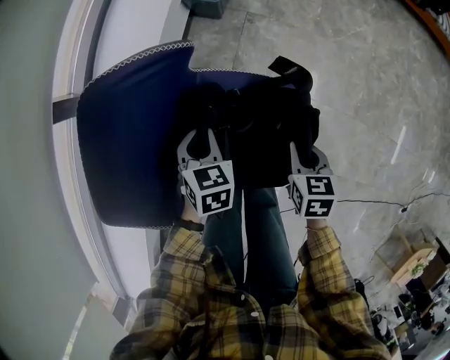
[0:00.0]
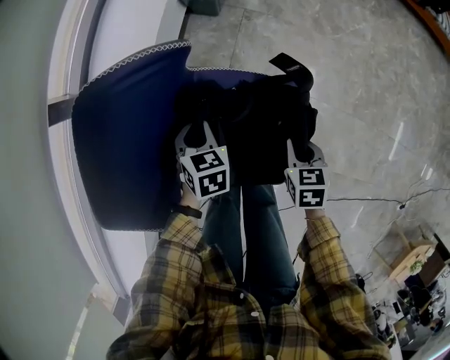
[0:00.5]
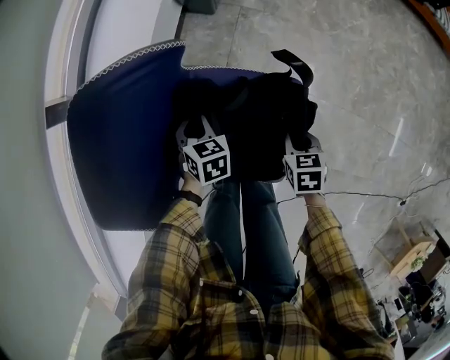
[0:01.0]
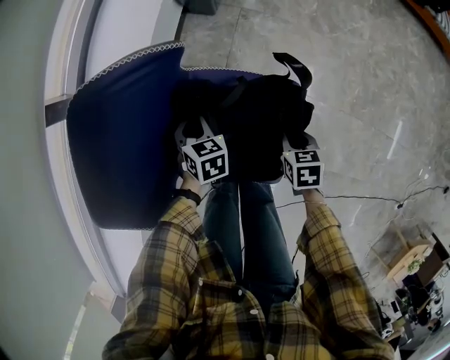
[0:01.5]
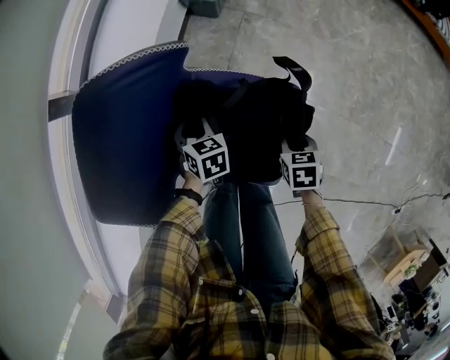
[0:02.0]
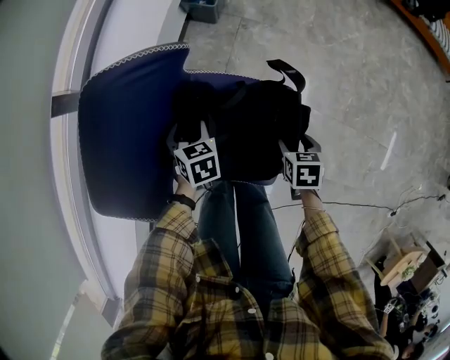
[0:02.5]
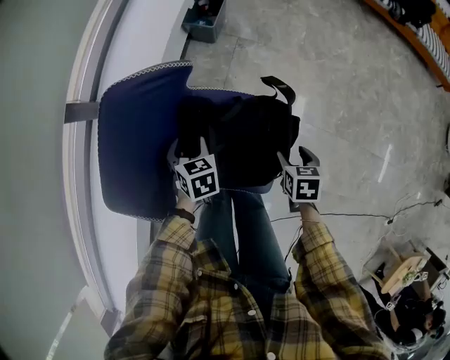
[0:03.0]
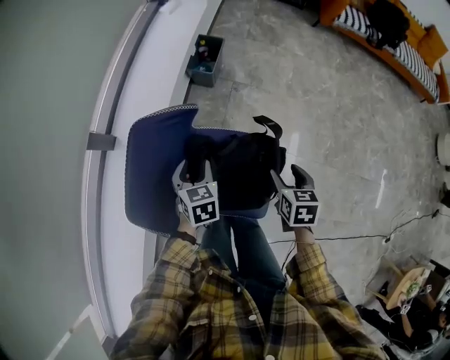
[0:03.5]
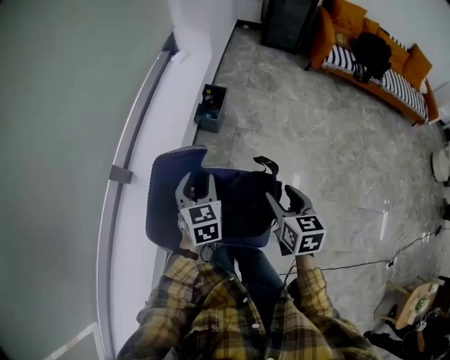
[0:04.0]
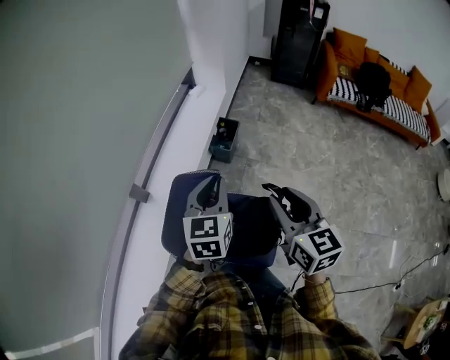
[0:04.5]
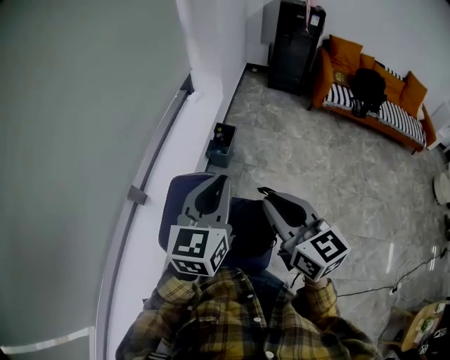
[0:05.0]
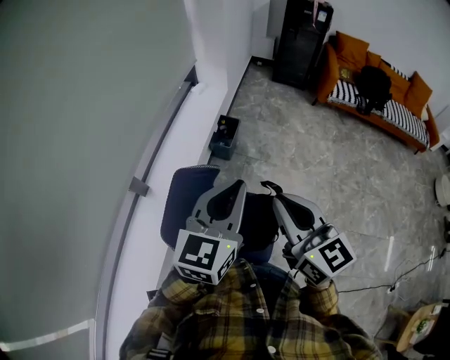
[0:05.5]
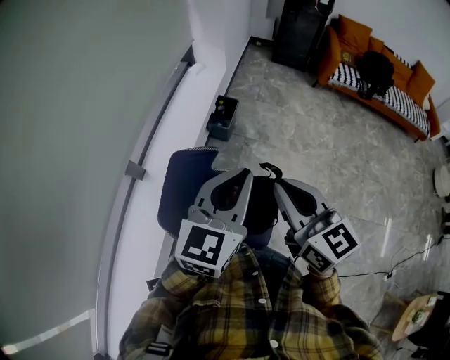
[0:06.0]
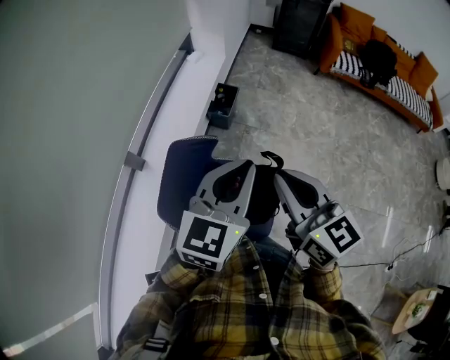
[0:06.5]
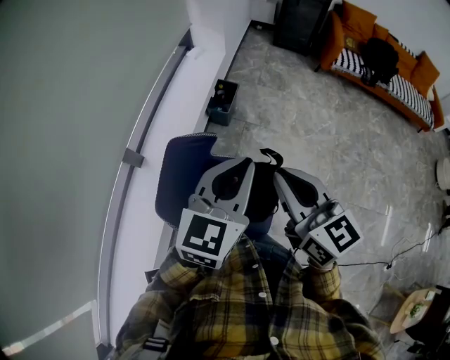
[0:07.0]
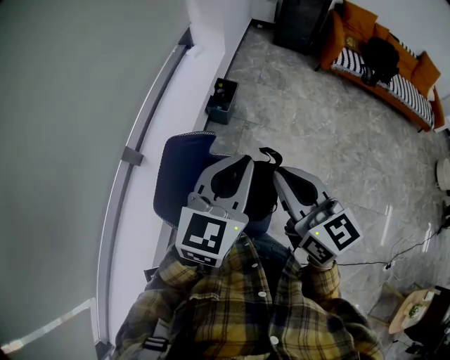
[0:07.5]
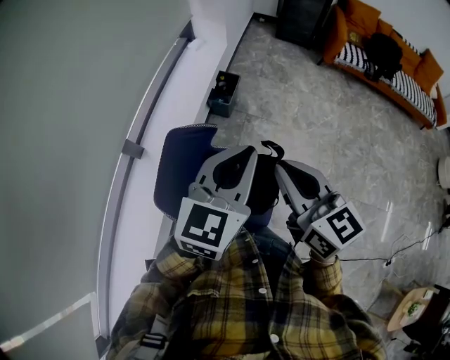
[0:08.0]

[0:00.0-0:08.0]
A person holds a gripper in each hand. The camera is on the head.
0:00.0 to 0:02.0: Both grippers move downward, some 10 cm.
0:02.0 to 0:04.0: The two grippers go approximately 35 cm upward. The left gripper swivels some 30 degrees, and opens its fingers. Meanwhile the right gripper angles its fingers upward, by roughly 30 degrees, and opens up.
0:04.0 to 0:06.0: Both grippers travel together upward, roughly 25 cm. The left gripper rotates some 40 degrees, and closes up. Meanwhile the right gripper tips its fingers upward by about 30 degrees, and closes its fingers.
0:06.0 to 0:08.0: The grippers stay close to where they were, moving slightly.

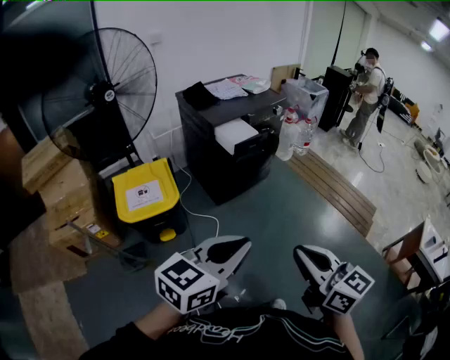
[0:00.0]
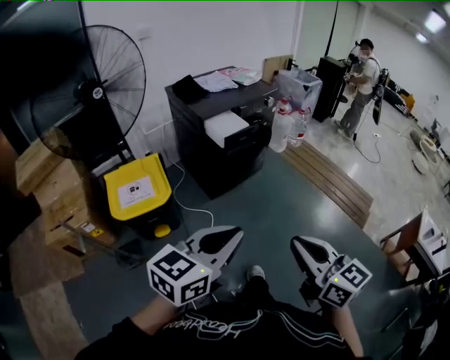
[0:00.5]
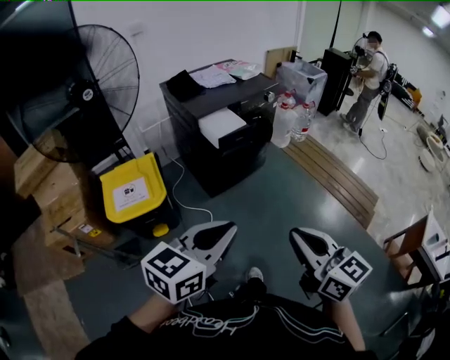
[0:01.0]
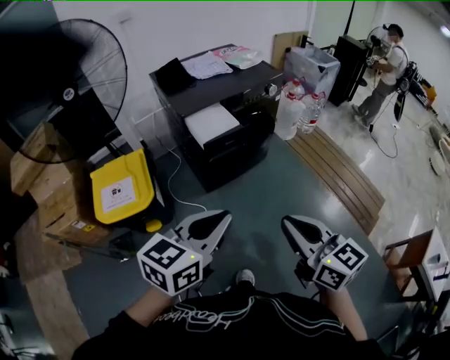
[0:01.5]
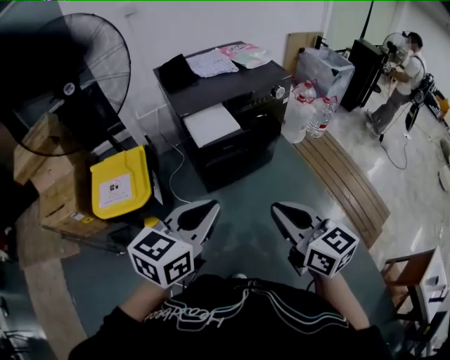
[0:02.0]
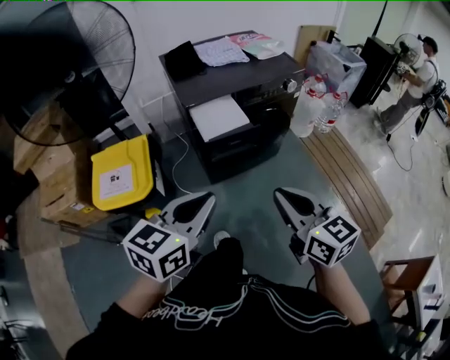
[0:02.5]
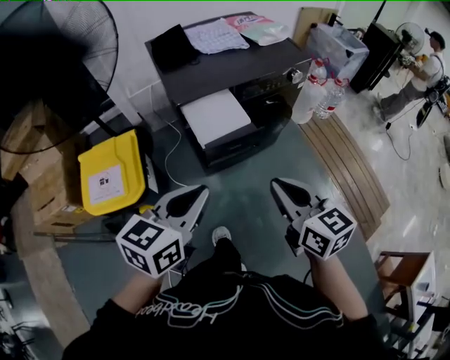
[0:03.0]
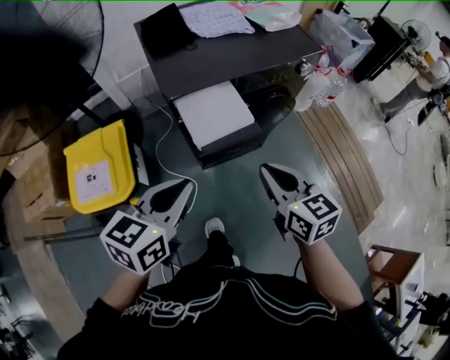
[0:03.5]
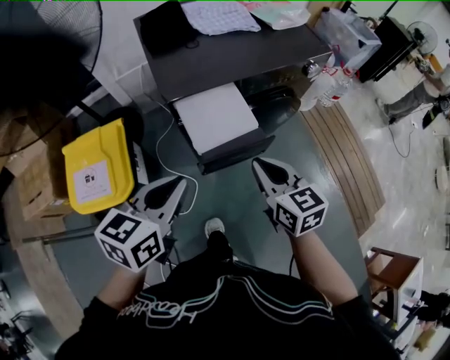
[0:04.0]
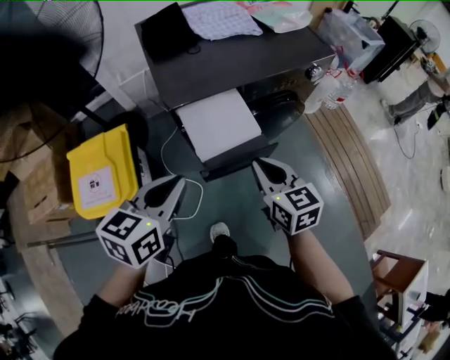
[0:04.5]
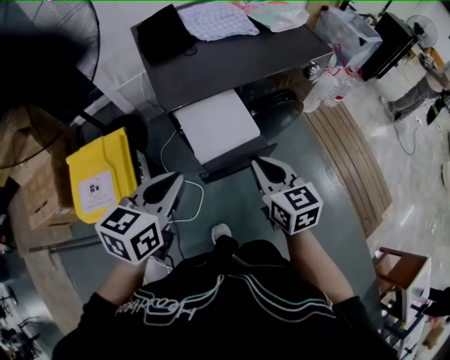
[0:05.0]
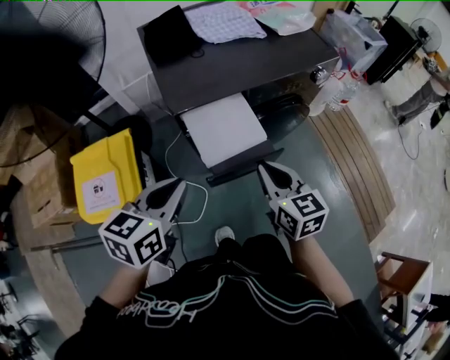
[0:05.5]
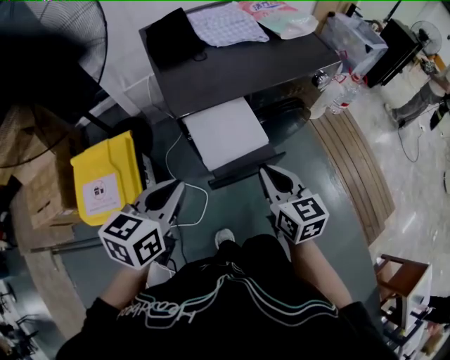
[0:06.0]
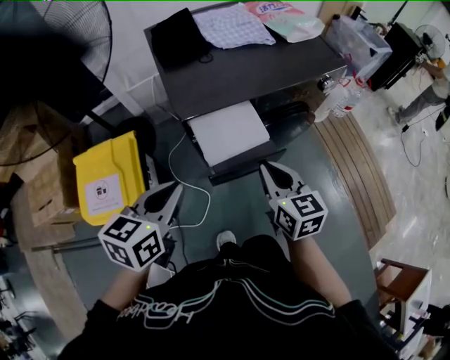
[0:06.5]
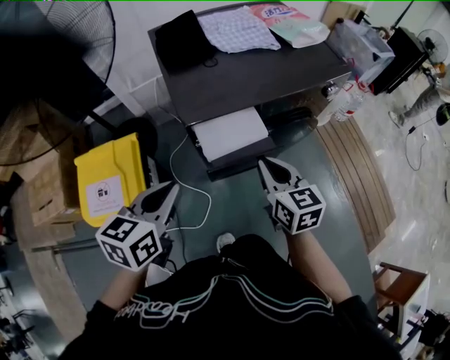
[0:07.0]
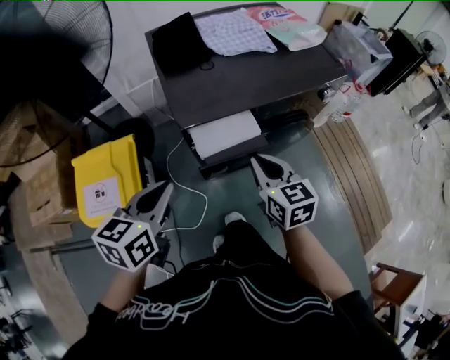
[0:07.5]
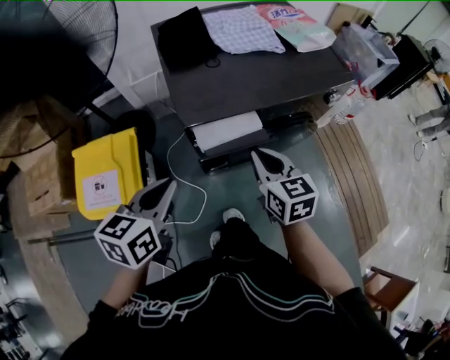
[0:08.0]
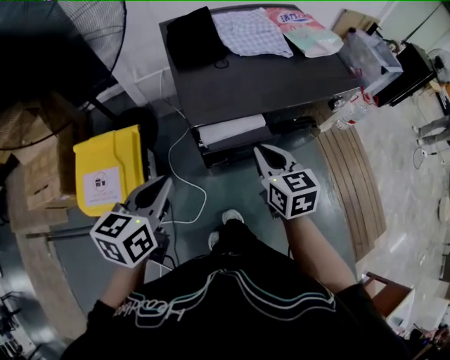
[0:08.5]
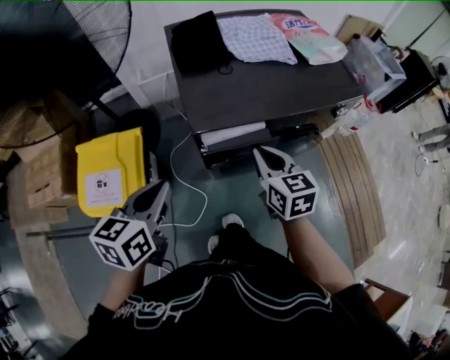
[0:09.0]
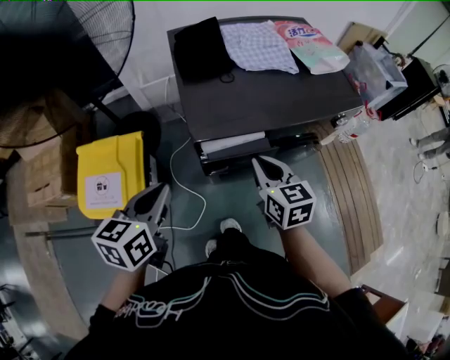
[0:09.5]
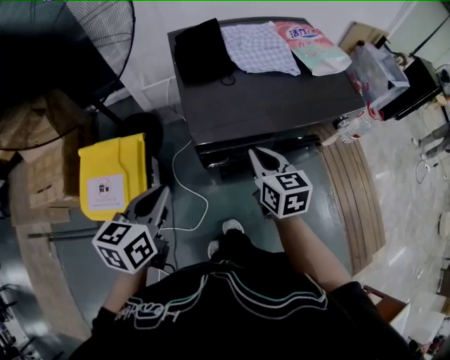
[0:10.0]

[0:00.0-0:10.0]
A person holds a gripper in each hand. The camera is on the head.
0:00.0 to 0:02.0: The grippers both shift forward by about 35 cm. The left gripper turns by approximately 20 degrees.
0:02.0 to 0:04.0: The grippers both shift forward and downward by some 30 cm.
0:04.0 to 0:06.0: The left gripper moves about 5 cm.
0:06.0 to 0:08.0: The right gripper is displaced forward by approximately 10 cm.
0:08.0 to 0:10.0: The right gripper travels forward by some 5 cm.

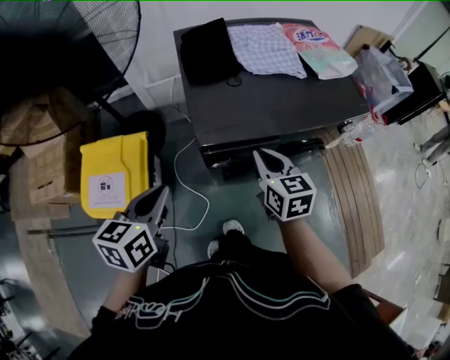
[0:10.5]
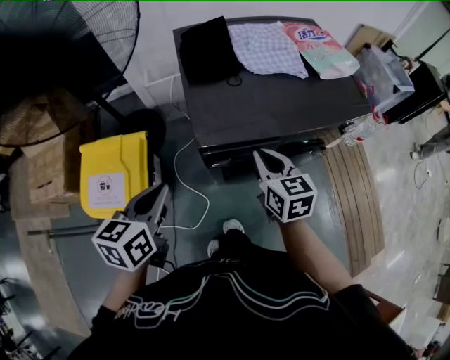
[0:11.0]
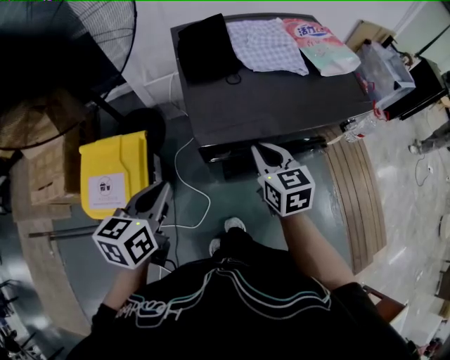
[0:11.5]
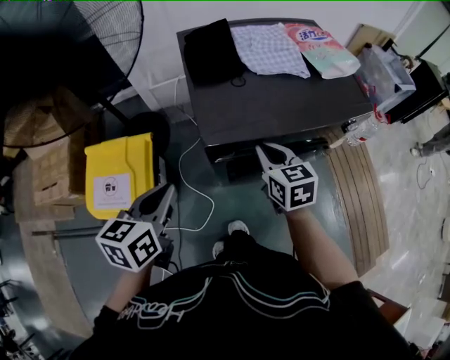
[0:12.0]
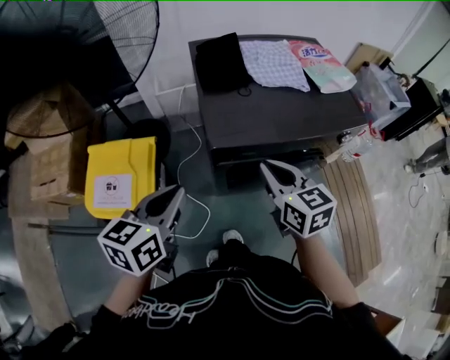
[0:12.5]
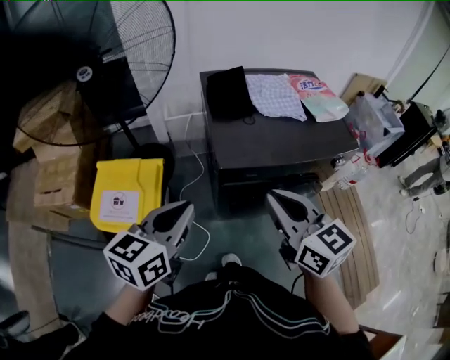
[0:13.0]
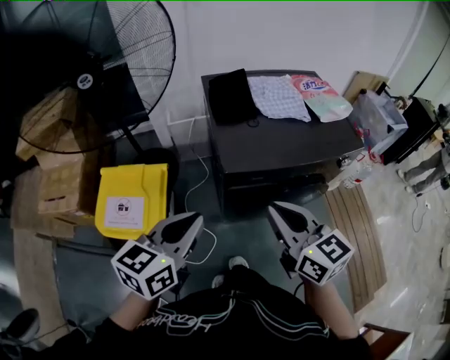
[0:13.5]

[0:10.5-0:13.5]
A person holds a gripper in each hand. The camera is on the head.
0:10.5 to 0:12.0: The grippers move only a little.
0:12.0 to 0:13.5: The left gripper goes some 10 cm upward and backward. Meanwhile the right gripper moves upward and backward, about 20 cm, and turns by roughly 20 degrees.

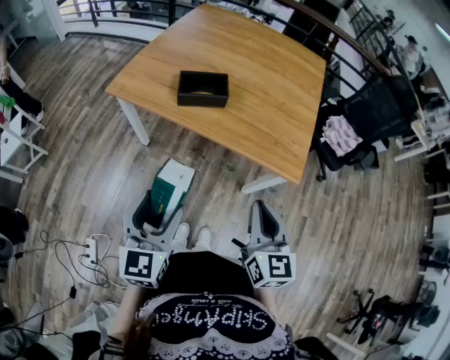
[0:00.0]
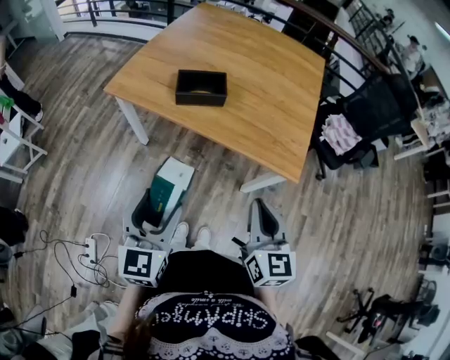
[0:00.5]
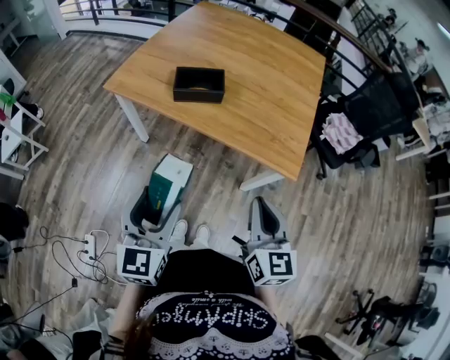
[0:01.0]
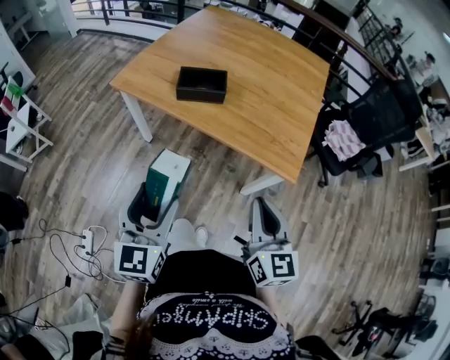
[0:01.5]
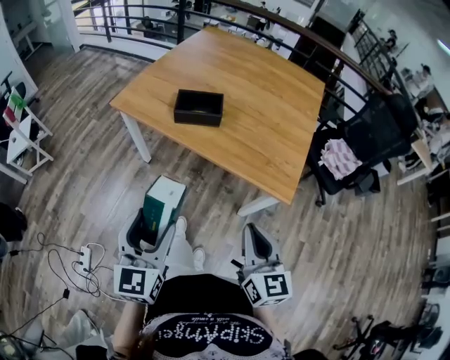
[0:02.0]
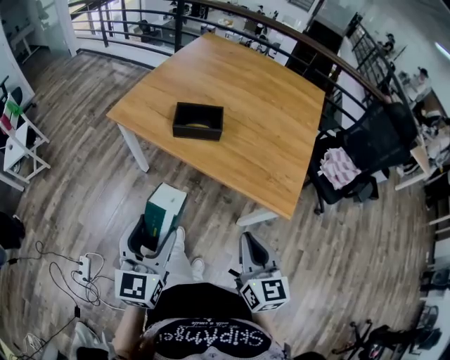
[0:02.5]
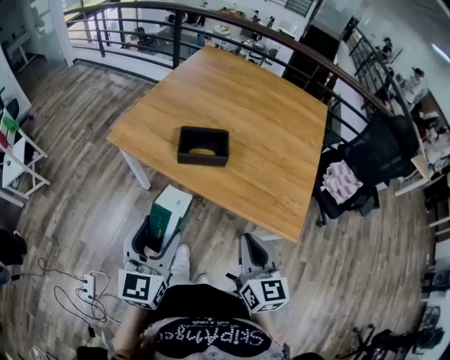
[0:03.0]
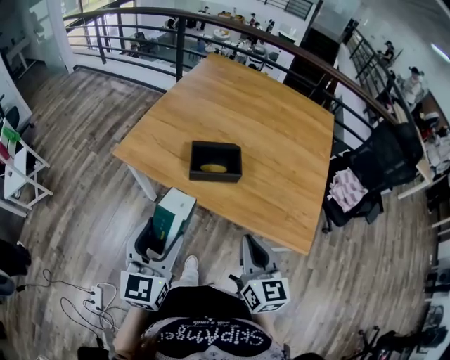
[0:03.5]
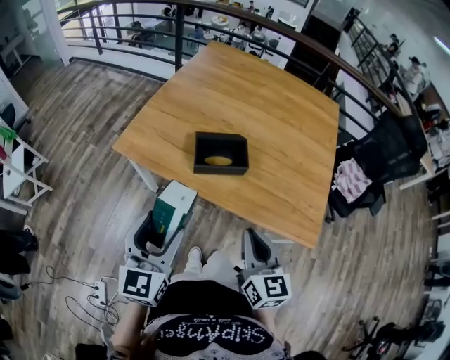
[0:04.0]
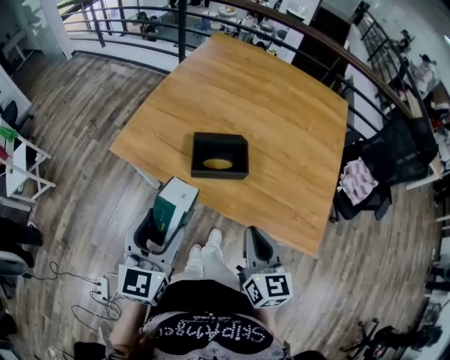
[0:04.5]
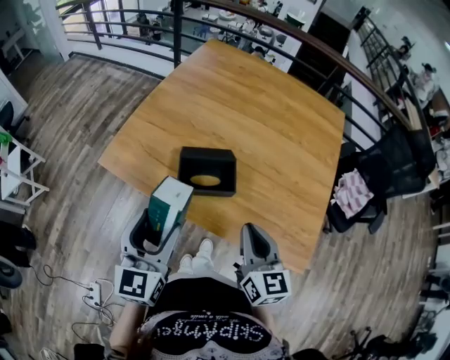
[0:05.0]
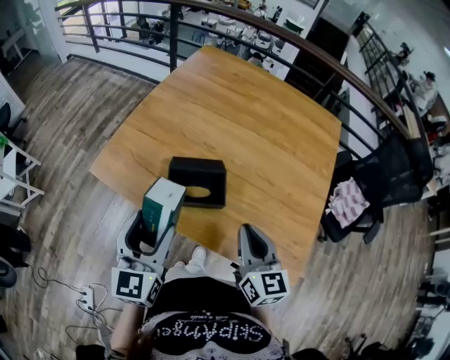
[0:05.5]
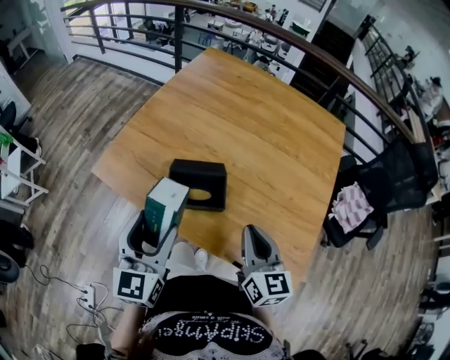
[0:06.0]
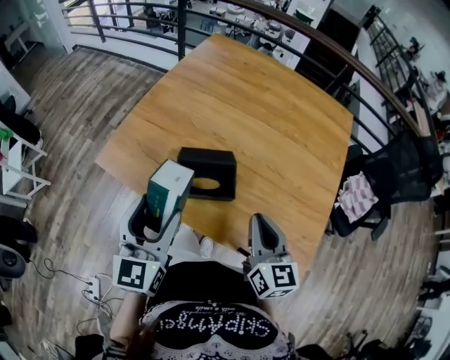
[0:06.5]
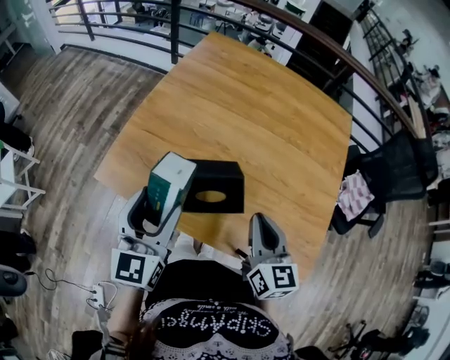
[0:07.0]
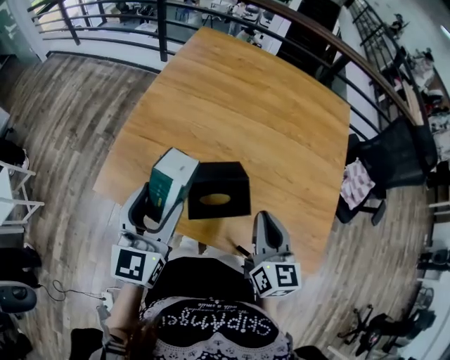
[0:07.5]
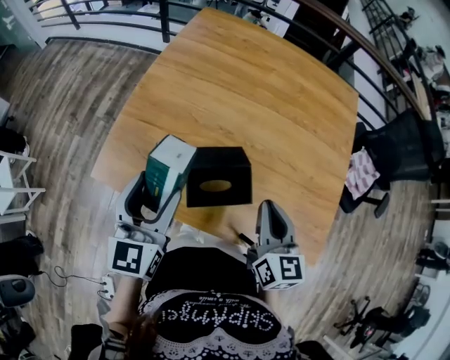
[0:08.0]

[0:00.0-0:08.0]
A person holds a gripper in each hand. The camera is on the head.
0:00.0 to 0:02.0: The grippers stay close to where they were, moving slightly.
0:02.0 to 0:04.0: Both grippers travel together forward and to the left, roughly 25 cm.
0:04.0 to 0:06.0: The grippers both shift forward and to the right by approximately 20 cm.
0:06.0 to 0:08.0: The right gripper shifts some 10 cm forward and to the left. Meanwhile the left gripper is displaced forward and to the left by some 15 cm.
